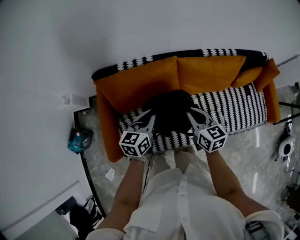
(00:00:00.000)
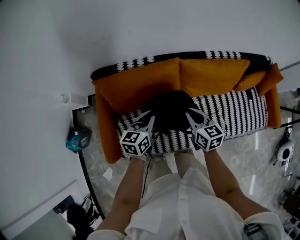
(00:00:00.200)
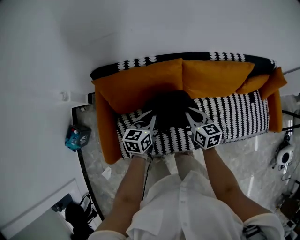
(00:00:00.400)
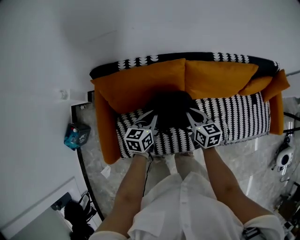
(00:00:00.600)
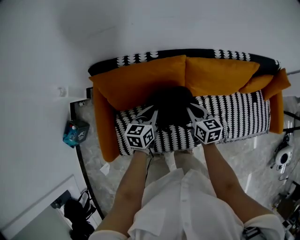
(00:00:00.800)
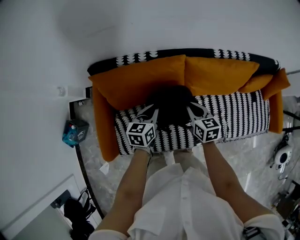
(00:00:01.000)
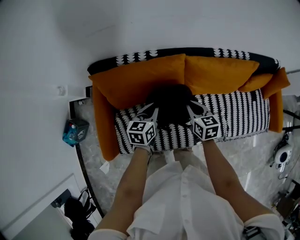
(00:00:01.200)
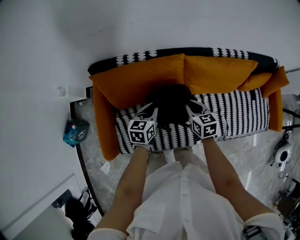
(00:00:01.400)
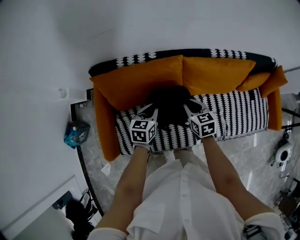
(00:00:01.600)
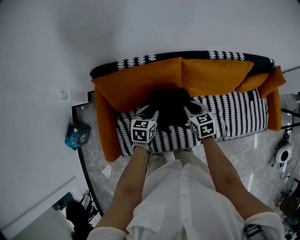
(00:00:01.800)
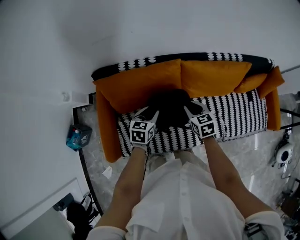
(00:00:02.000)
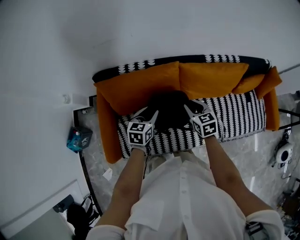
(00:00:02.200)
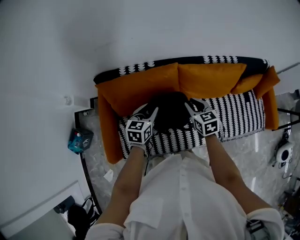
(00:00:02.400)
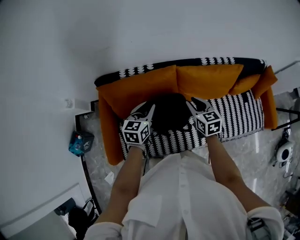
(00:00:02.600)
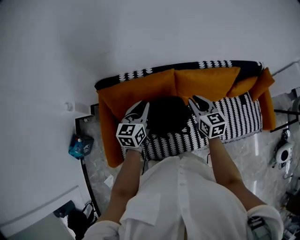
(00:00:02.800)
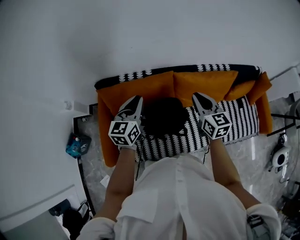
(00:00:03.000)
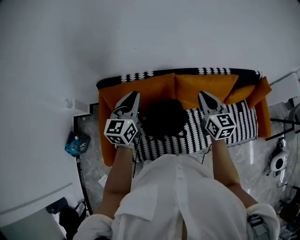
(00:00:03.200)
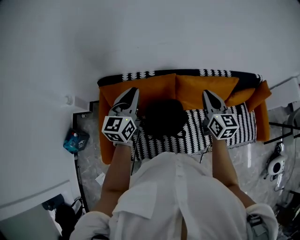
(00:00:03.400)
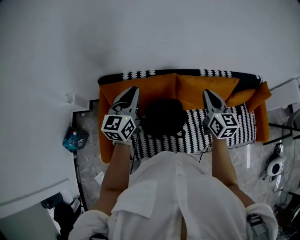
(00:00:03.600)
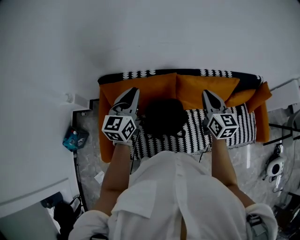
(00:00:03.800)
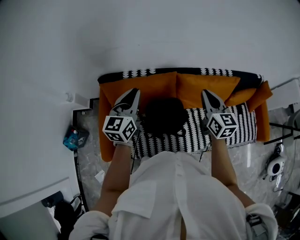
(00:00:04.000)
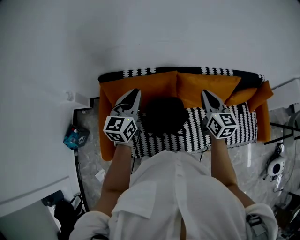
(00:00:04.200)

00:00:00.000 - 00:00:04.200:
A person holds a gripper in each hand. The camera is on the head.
00:00:00.000 - 00:00:01.400: Both grippers move downward and forward, about 15 cm.
00:00:01.400 - 00:00:02.800: Both grippers move upward, about 15 cm. The left gripper opens and closes again.
00:00:02.800 - 00:00:04.200: The two grippers go some 10 cm upward.

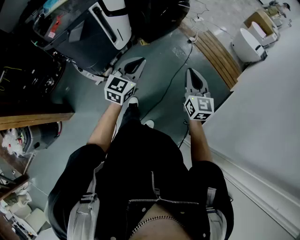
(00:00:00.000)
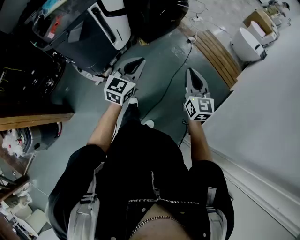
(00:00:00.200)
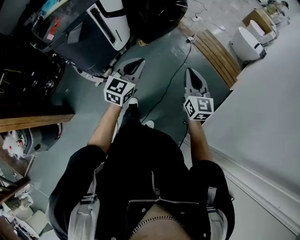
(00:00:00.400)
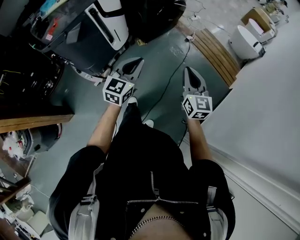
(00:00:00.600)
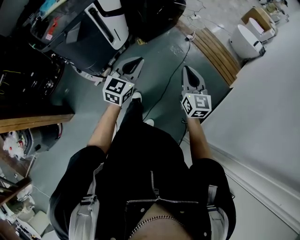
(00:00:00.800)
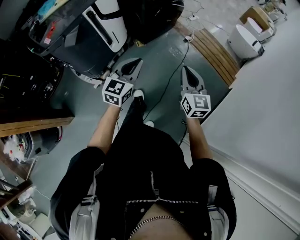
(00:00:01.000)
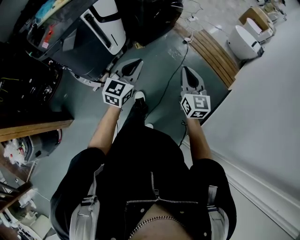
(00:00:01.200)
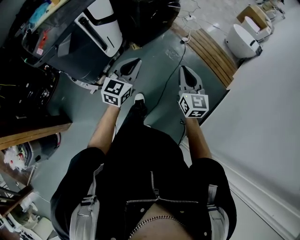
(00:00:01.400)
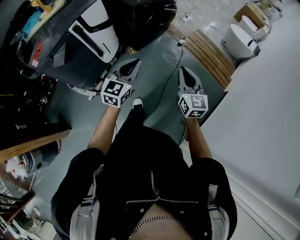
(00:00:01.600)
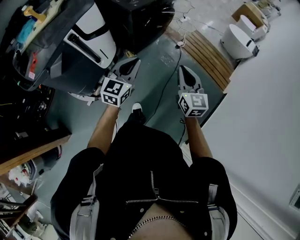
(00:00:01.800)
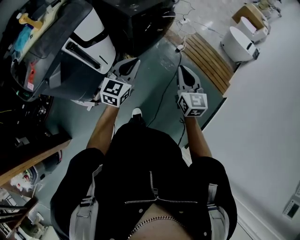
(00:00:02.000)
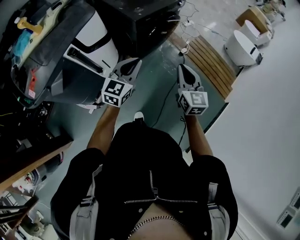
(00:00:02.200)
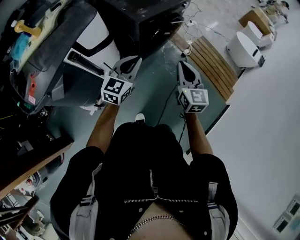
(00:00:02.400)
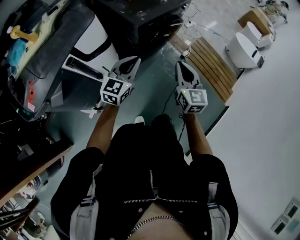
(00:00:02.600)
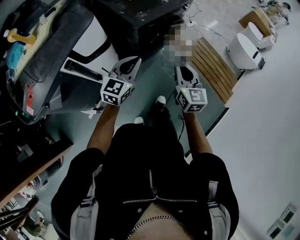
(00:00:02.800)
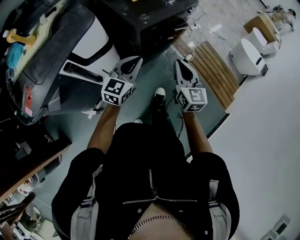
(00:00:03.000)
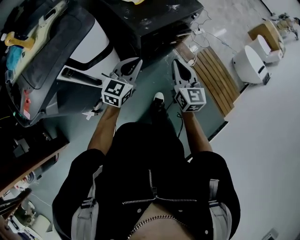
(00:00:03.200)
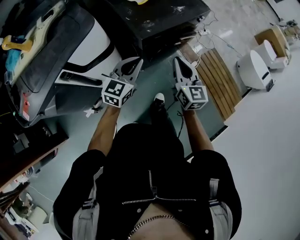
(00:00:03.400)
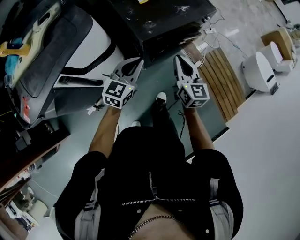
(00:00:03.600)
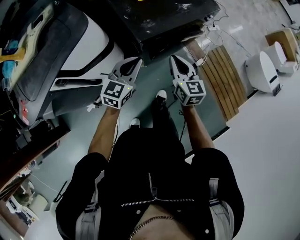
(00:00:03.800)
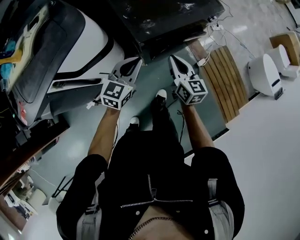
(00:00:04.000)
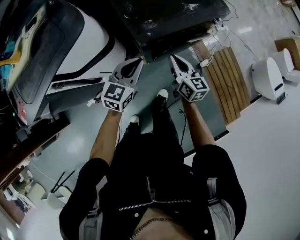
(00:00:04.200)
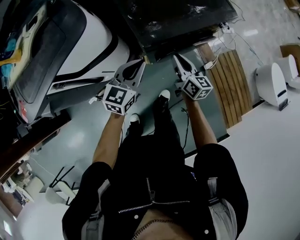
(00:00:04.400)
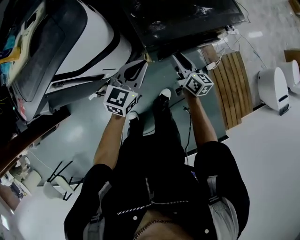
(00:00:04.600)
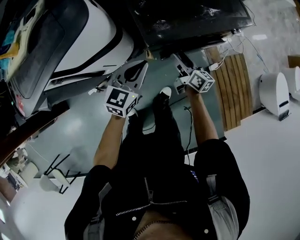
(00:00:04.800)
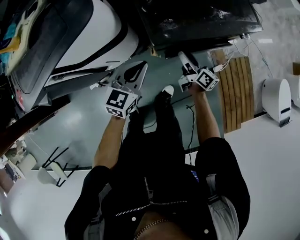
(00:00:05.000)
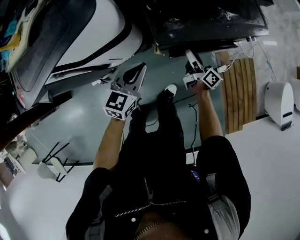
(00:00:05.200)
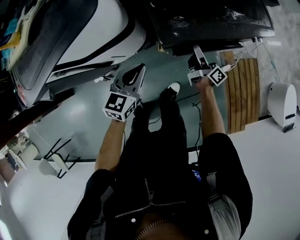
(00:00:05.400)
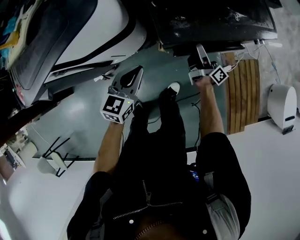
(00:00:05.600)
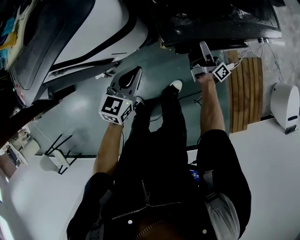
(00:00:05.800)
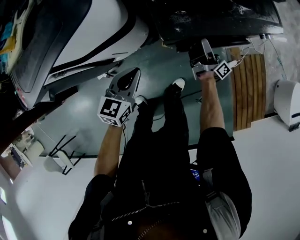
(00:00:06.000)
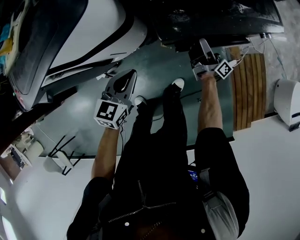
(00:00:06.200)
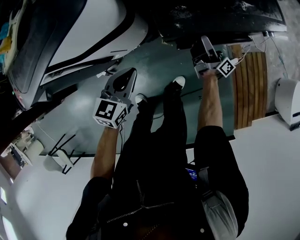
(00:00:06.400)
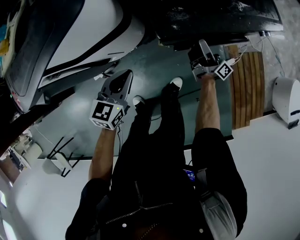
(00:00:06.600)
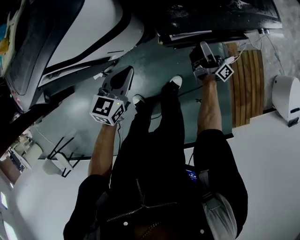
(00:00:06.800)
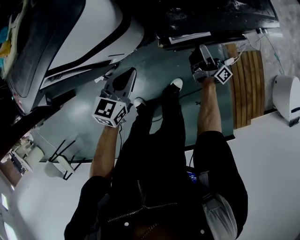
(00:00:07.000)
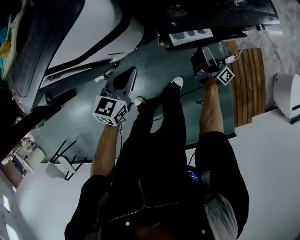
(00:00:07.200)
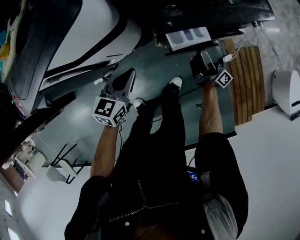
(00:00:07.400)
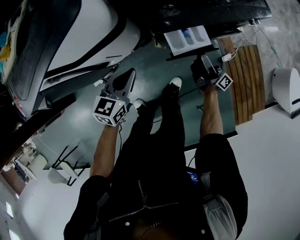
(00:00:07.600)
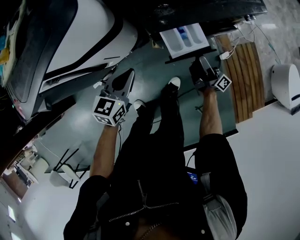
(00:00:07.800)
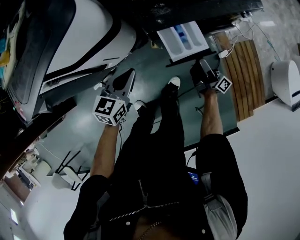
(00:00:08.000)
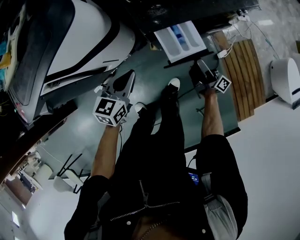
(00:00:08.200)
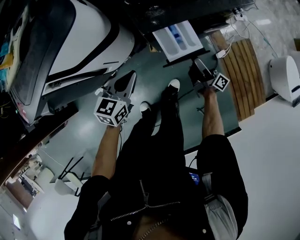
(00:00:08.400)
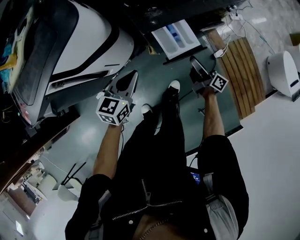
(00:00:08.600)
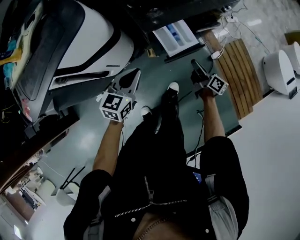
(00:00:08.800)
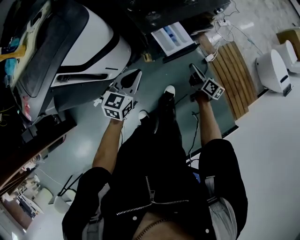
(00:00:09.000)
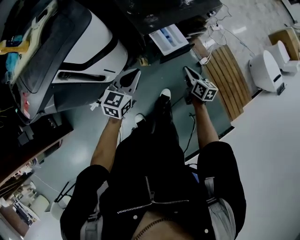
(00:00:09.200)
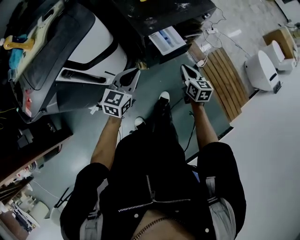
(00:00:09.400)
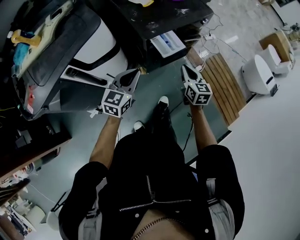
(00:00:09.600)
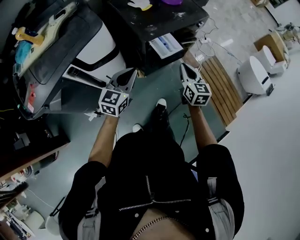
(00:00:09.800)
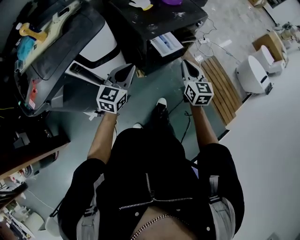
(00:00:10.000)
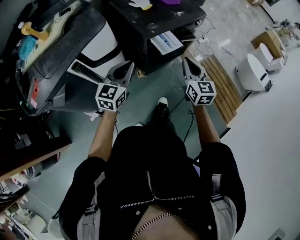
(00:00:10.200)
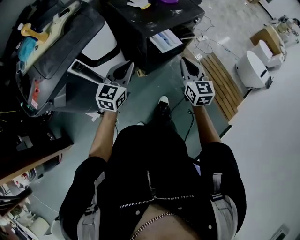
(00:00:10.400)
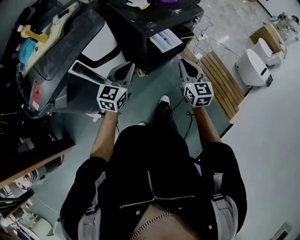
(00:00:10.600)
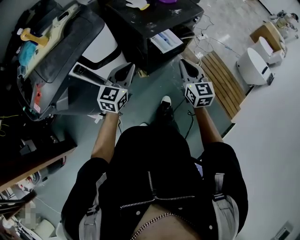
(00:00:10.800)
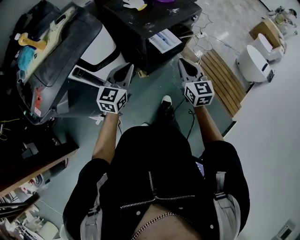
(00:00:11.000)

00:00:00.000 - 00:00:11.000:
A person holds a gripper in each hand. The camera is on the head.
00:00:00.000 - 00:00:01.600: The grippers both shift forward by approximately 10 cm.
00:00:01.600 - 00:00:03.200: Both grippers move forward, roughly 35 cm.
00:00:03.200 - 00:00:04.800: The left gripper is displaced forward and downward by some 15 cm, and rotates approximately 20 degrees. Meanwhile the right gripper travels forward and downward by about 30 cm, twists approximately 40 degrees clockwise, seen from behind, and opens its fingers.
00:00:04.800 - 00:00:06.200: The right gripper goes roughly 5 cm forward, and tips its fingers upward by about 30 degrees, while the left gripper moves to the left and downward, approximately 10 cm.
00:00:06.200 - 00:00:07.800: The right gripper is displaced backward by about 10 cm.
00:00:07.800 - 00:00:09.400: The right gripper is displaced backward and upward by approximately 15 cm, tilts its fingers roughly 50 degrees downward, and closes its fingers; the left gripper is displaced upward and backward by about 15 cm, and rotates roughly 20 degrees.
00:00:09.400 - 00:00:11.000: The left gripper is displaced upward, to the left and backward by roughly 10 cm. The right gripper is displaced upward and backward by about 20 cm, and changes its angle by about 20 degrees.

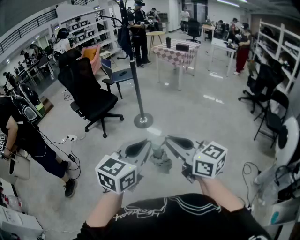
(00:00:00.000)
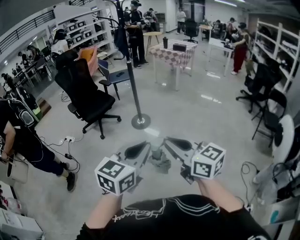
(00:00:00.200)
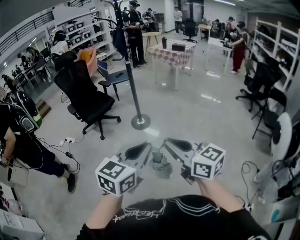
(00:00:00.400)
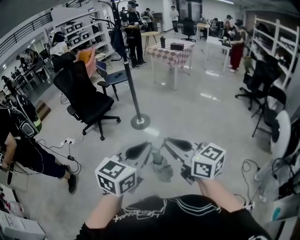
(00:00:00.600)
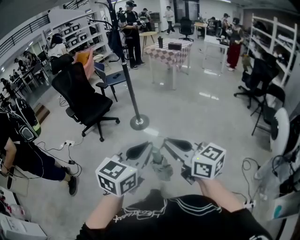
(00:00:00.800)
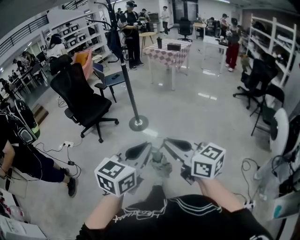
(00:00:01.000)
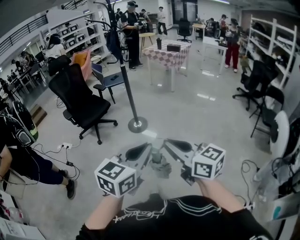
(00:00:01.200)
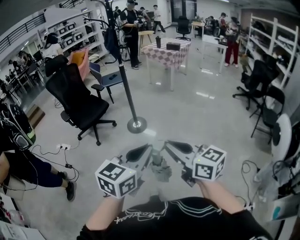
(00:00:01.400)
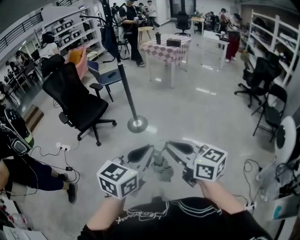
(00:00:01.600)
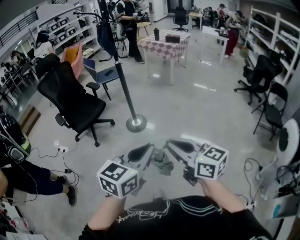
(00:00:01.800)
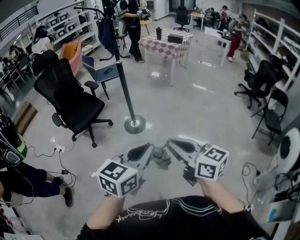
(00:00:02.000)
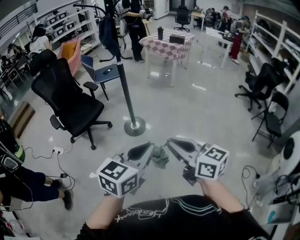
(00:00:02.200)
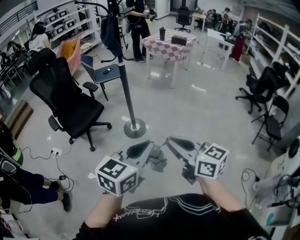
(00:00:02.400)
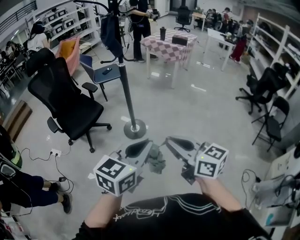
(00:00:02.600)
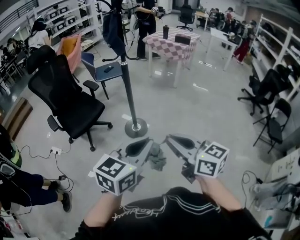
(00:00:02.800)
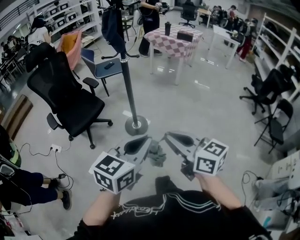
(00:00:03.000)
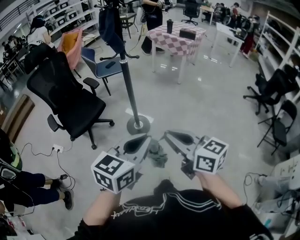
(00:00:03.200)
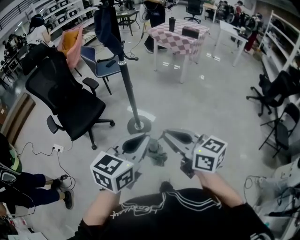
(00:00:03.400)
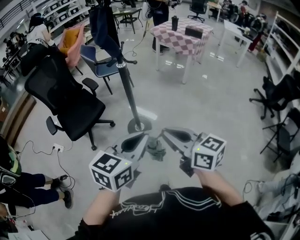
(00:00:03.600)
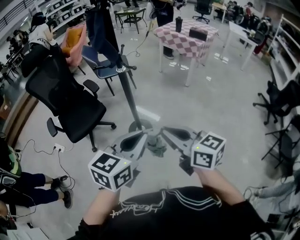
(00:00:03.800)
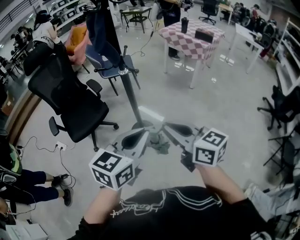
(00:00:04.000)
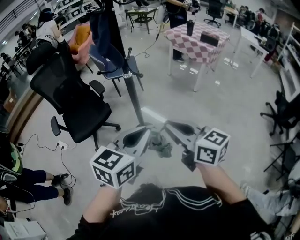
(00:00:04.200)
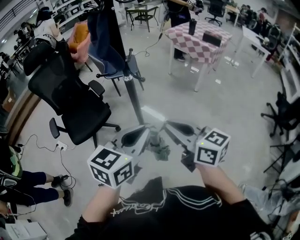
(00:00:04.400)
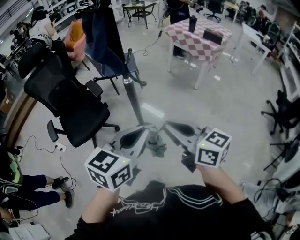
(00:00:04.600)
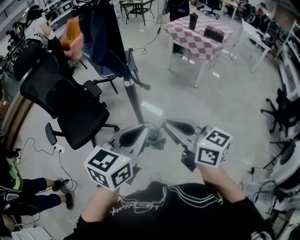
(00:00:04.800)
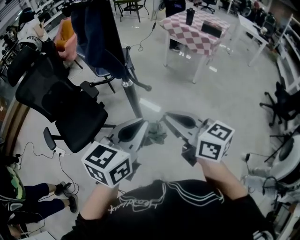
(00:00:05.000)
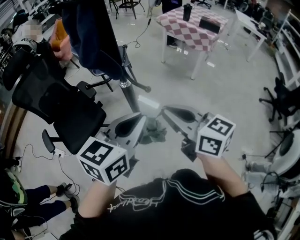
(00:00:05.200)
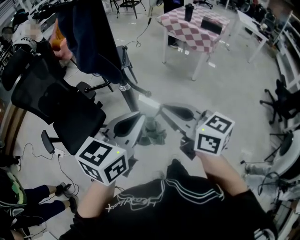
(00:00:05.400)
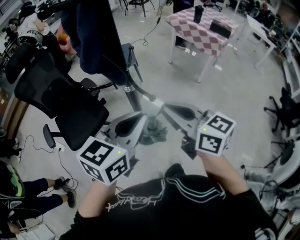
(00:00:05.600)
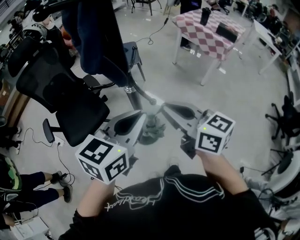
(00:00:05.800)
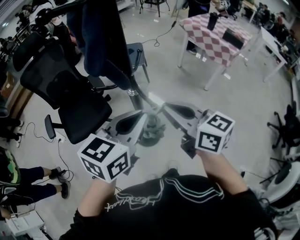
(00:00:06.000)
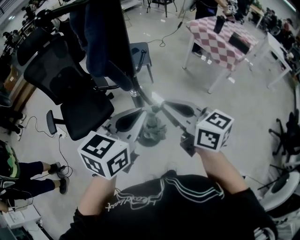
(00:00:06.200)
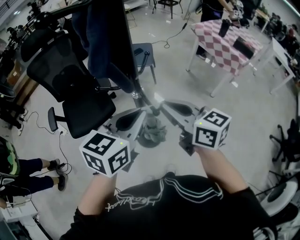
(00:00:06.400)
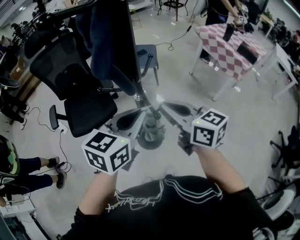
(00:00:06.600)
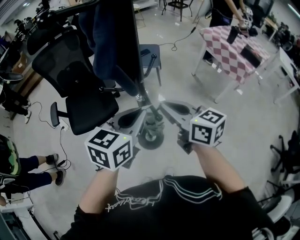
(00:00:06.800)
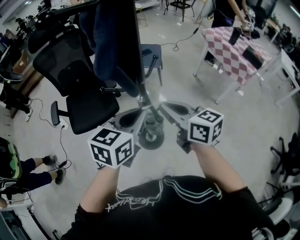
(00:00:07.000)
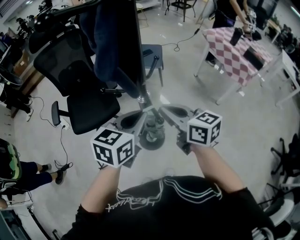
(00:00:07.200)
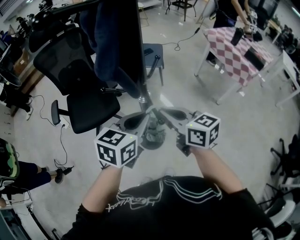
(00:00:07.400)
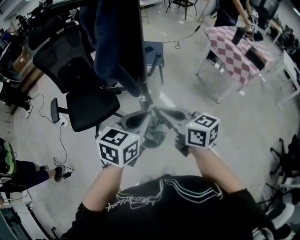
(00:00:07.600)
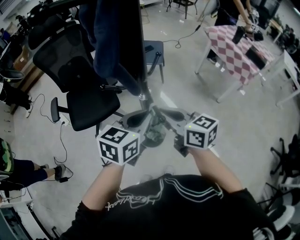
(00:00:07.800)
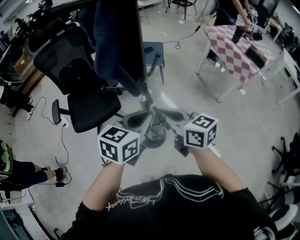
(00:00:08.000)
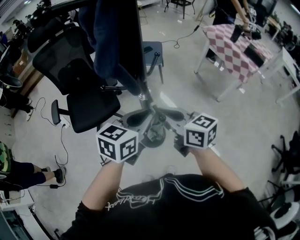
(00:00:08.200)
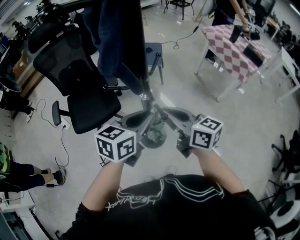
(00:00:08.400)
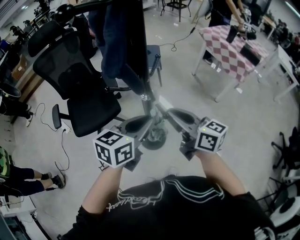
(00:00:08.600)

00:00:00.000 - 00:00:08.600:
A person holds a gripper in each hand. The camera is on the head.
00:00:00.000 - 00:00:01.400: The grippers both shift forward by roughly 5 cm.
00:00:01.400 - 00:00:02.800: Both grippers travel together forward, approximately 30 cm.
00:00:02.800 - 00:00:04.400: The grippers both shift forward by roughly 30 cm.
00:00:04.400 - 00:00:05.800: Both grippers travel together forward, about 20 cm.
00:00:05.800 - 00:00:07.200: The grippers both shift forward and downward by about 10 cm.
00:00:07.200 - 00:00:08.600: There are only small adjustments of the grippers.
